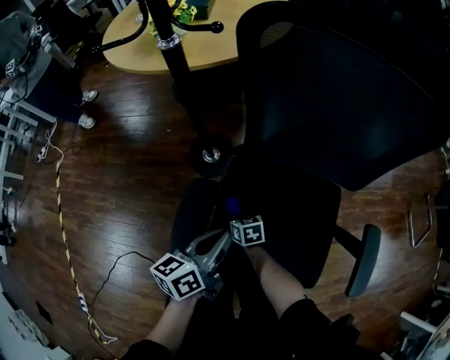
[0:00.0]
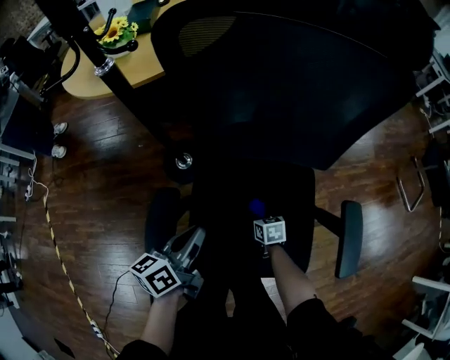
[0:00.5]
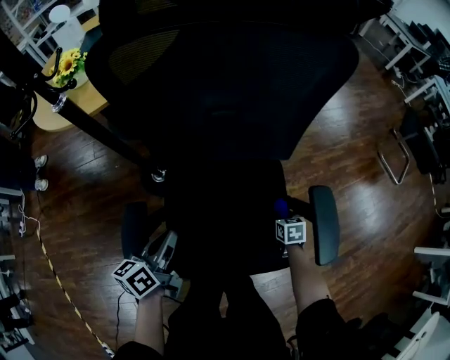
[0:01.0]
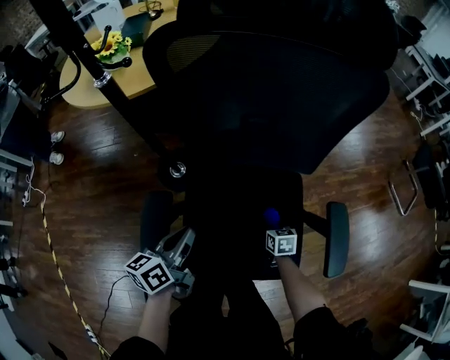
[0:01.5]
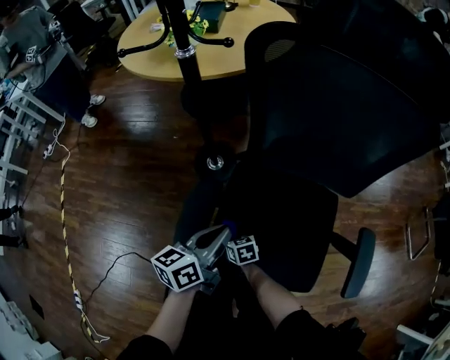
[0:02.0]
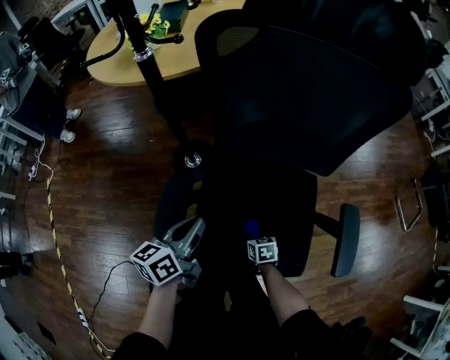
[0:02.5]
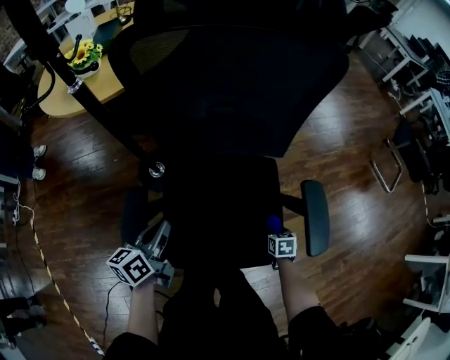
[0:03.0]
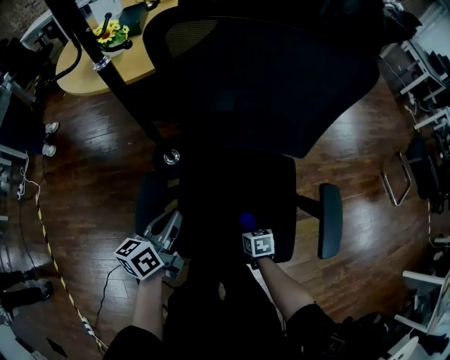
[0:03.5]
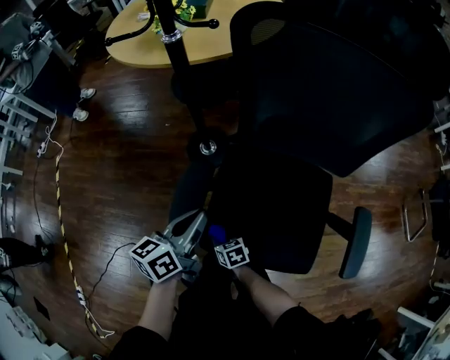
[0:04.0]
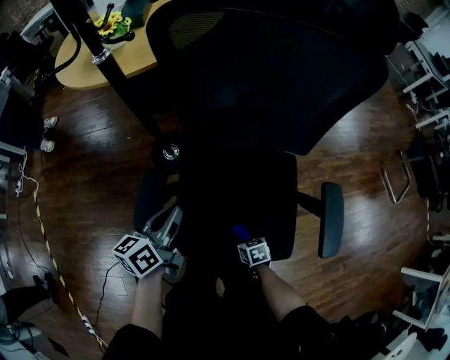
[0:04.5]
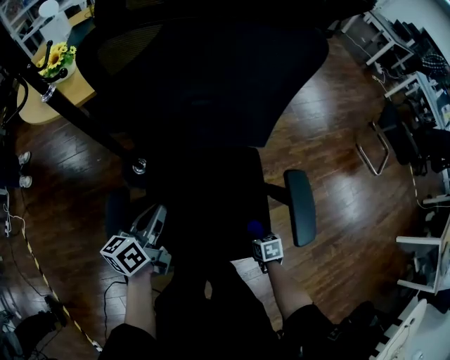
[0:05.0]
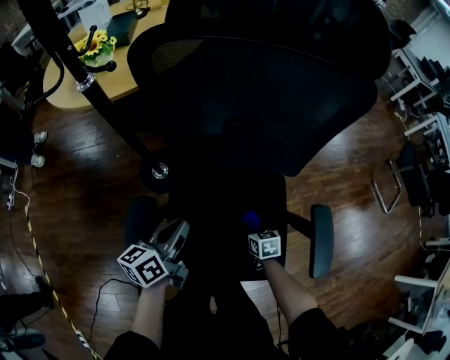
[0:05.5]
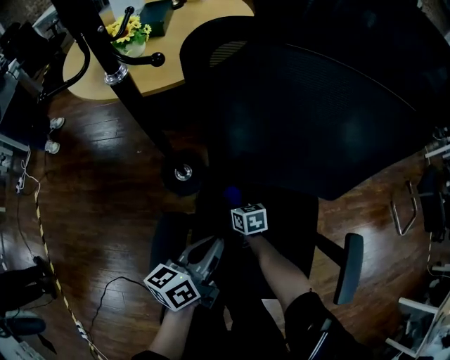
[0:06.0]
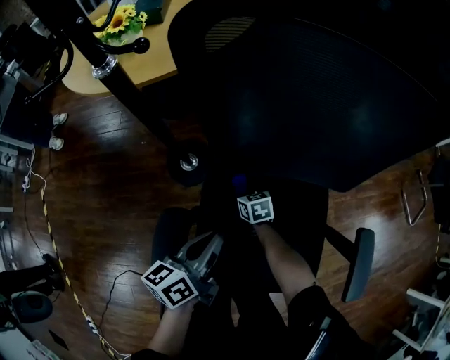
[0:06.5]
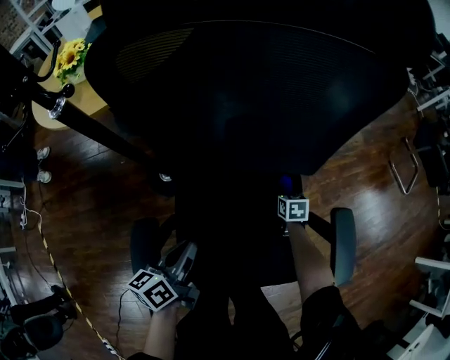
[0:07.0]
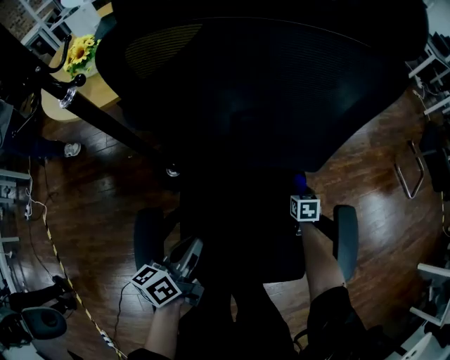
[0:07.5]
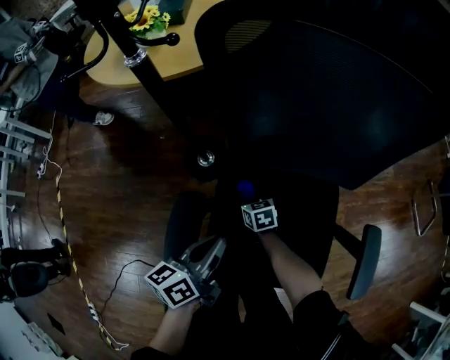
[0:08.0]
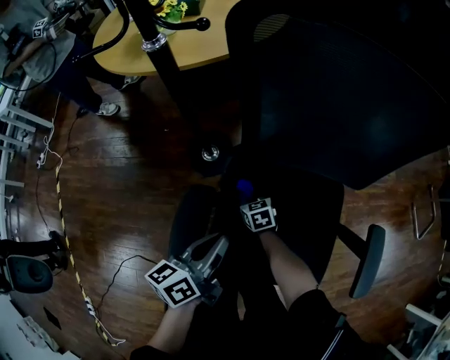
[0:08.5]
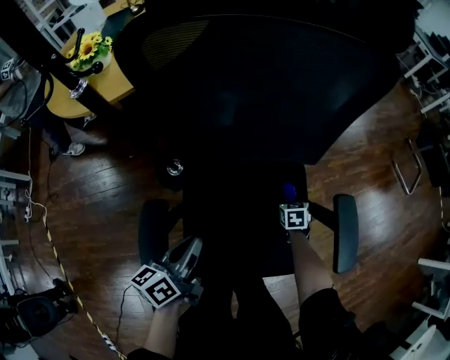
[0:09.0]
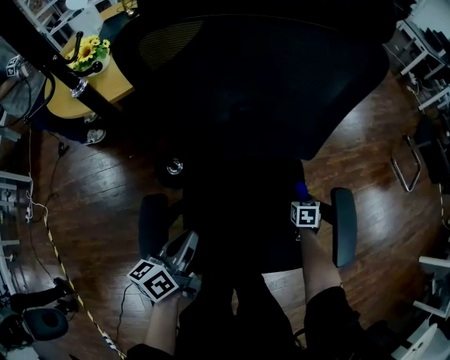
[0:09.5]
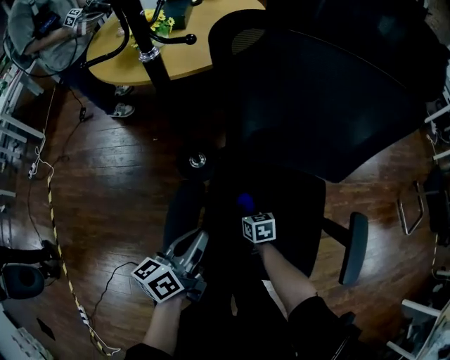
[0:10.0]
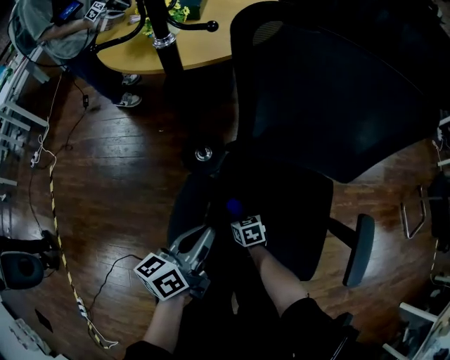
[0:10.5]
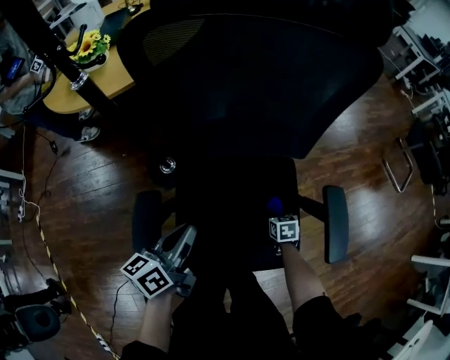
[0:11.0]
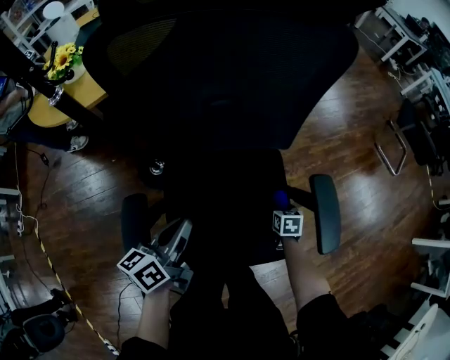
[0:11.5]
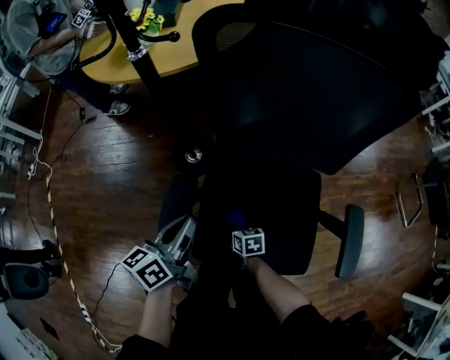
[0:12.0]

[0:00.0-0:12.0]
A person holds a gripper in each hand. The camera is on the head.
0:04.0 to 0:06.0: The left gripper shifts by roughly 10 cm. The right gripper shifts by about 30 cm.
0:08.0 to 0:10.0: The left gripper changes place by roughly 5 cm.

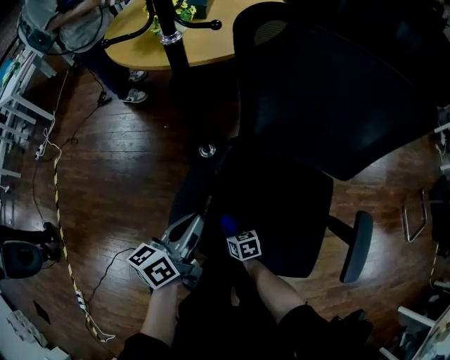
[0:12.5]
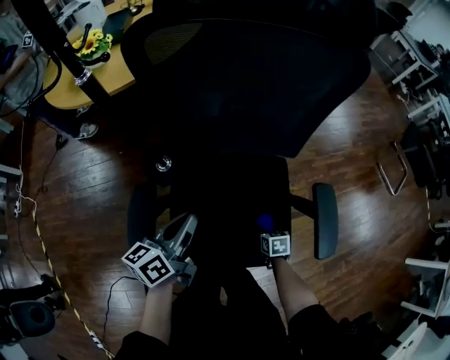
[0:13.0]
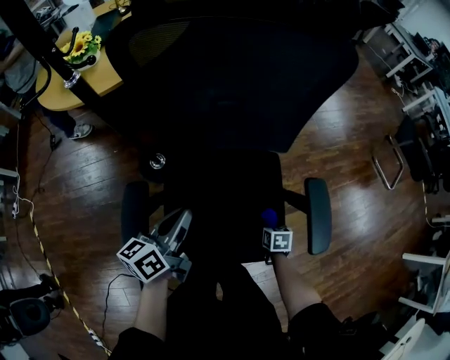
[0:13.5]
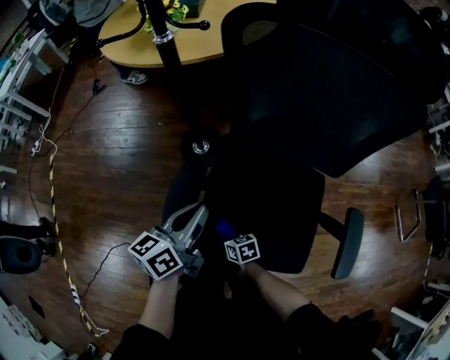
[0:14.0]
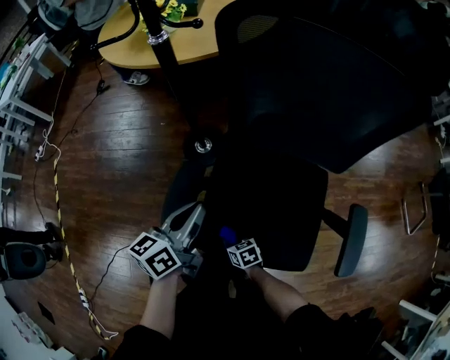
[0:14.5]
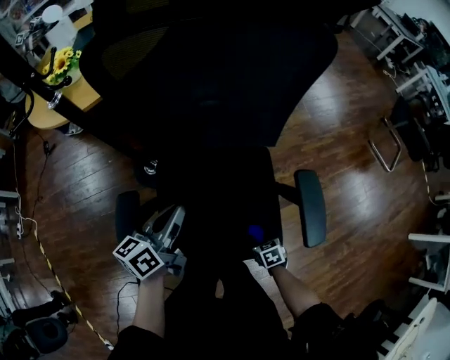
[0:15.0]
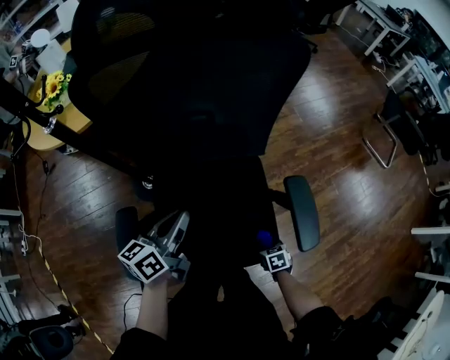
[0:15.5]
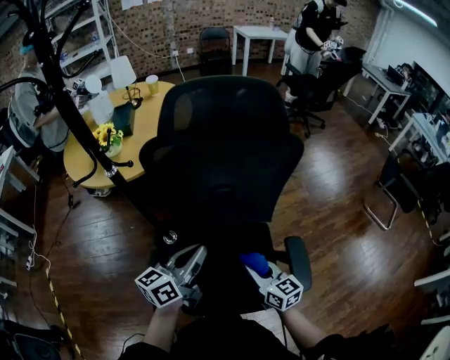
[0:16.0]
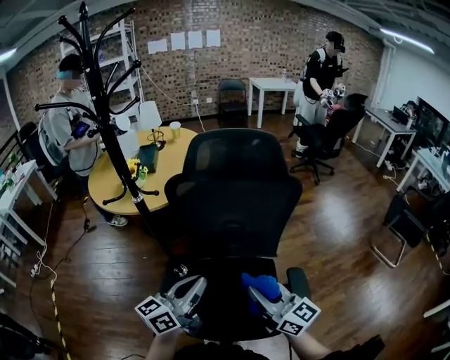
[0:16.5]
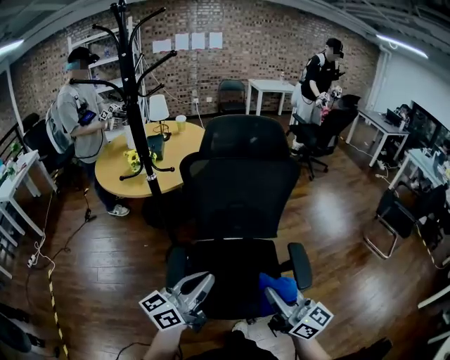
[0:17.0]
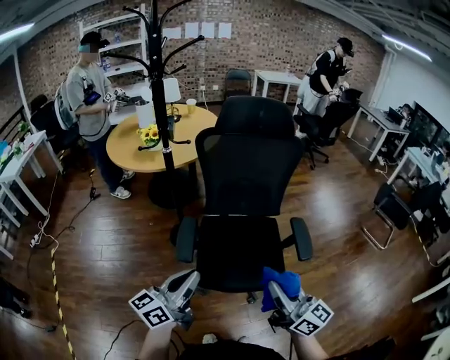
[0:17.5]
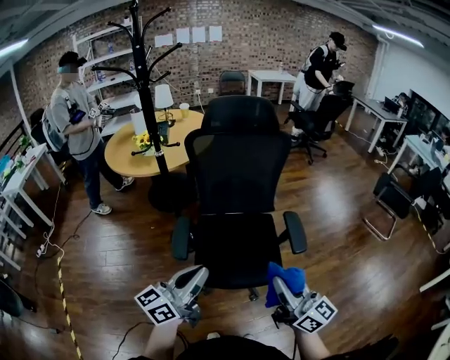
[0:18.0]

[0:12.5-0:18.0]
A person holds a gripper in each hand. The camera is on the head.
0:14.5 to 0:16.0: The right gripper shifts approximately 35 cm upward, and points its fingers approximately 40 degrees further upward, while the left gripper shifts approximately 15 cm upward, and swivels about 30 degrees.
0:16.0 to 0:18.0: The right gripper is displaced backward and upward by some 40 cm, and angles its fingers upward, by some 30 degrees. The left gripper goes about 35 cm backward.

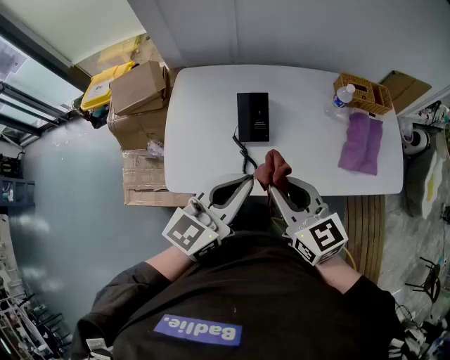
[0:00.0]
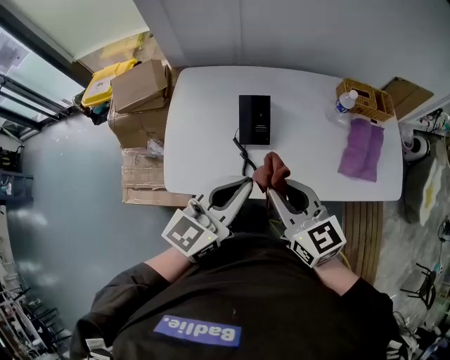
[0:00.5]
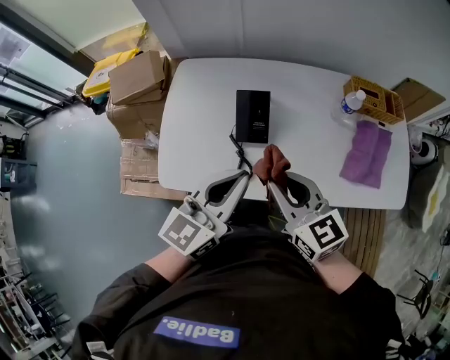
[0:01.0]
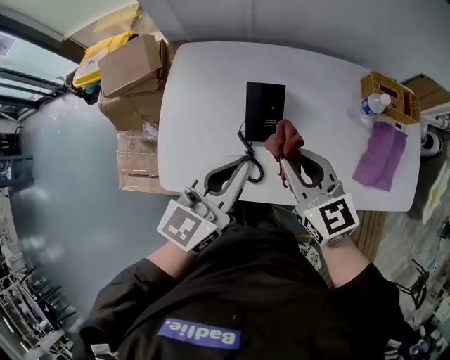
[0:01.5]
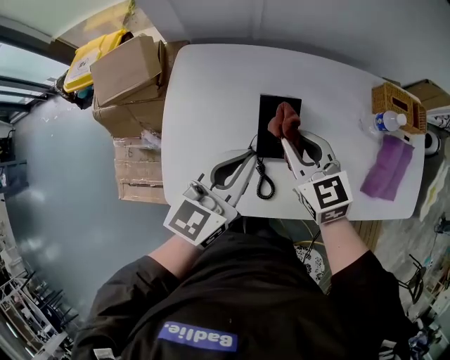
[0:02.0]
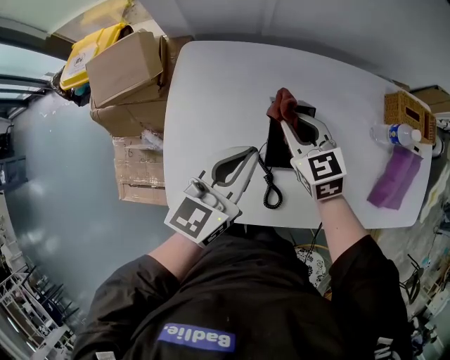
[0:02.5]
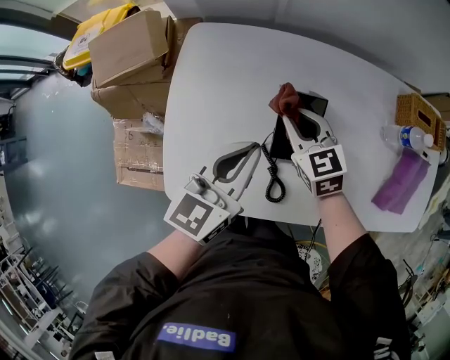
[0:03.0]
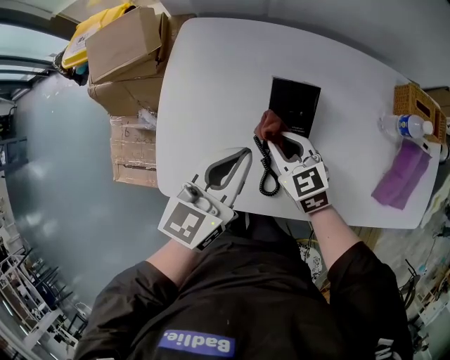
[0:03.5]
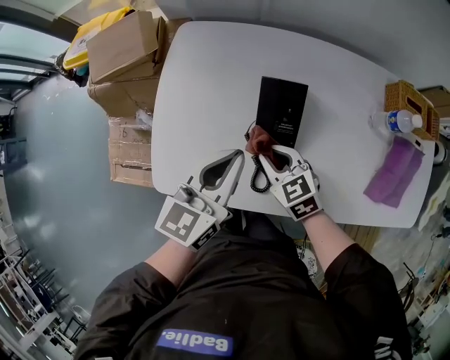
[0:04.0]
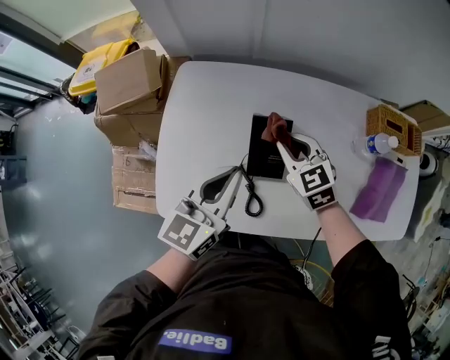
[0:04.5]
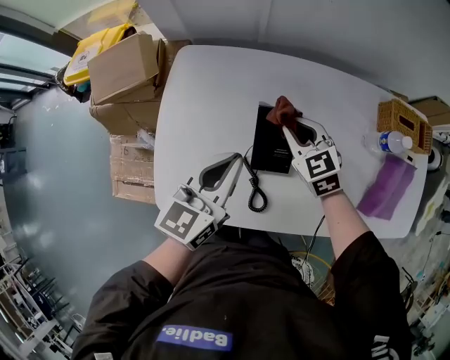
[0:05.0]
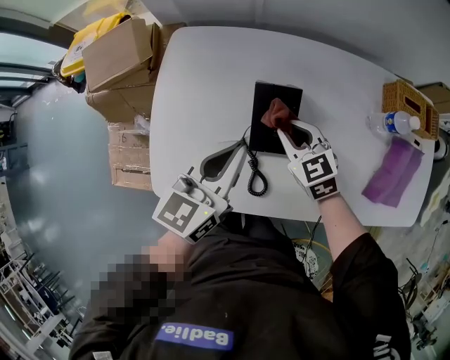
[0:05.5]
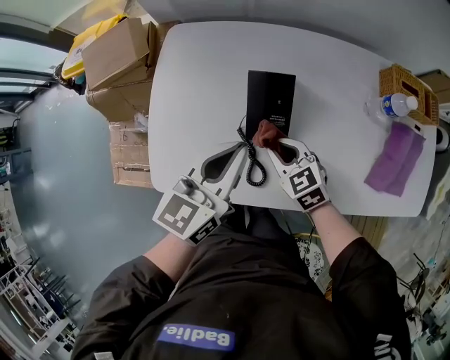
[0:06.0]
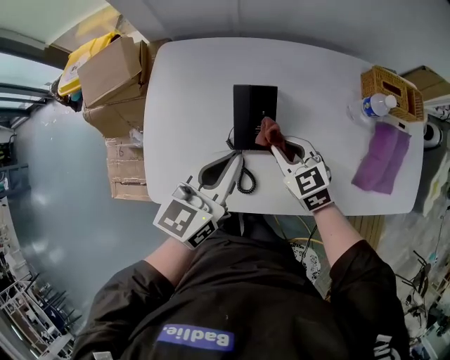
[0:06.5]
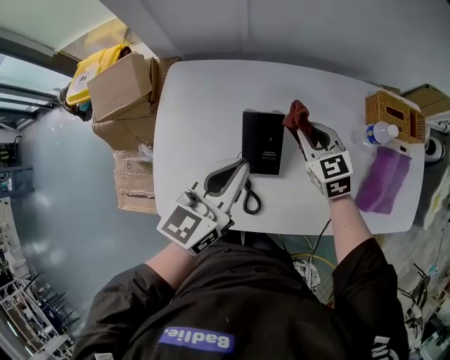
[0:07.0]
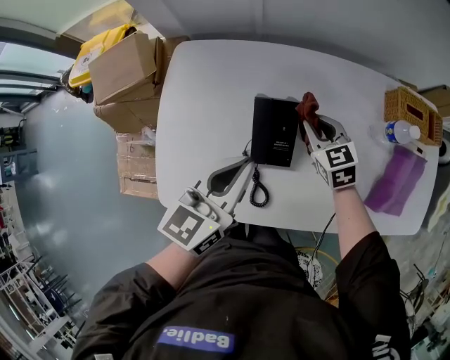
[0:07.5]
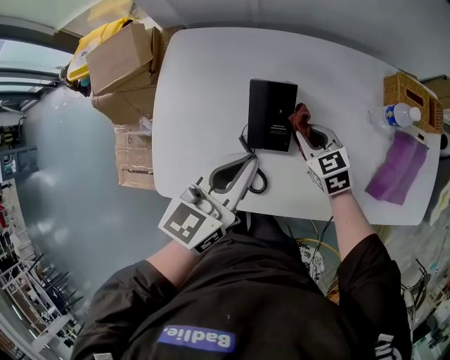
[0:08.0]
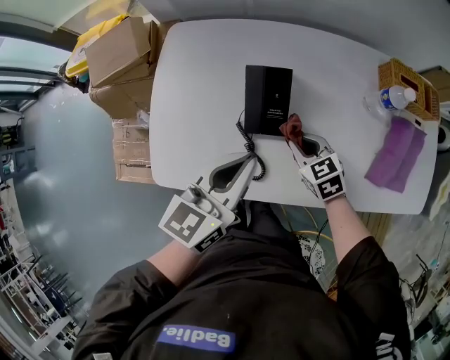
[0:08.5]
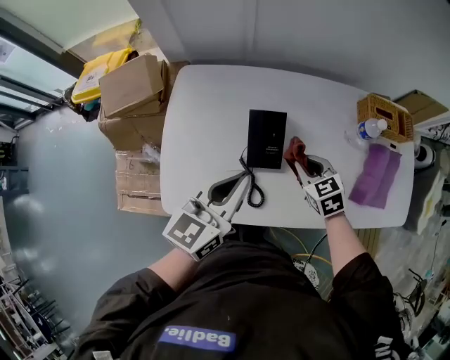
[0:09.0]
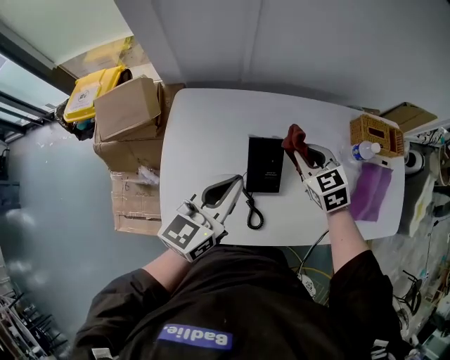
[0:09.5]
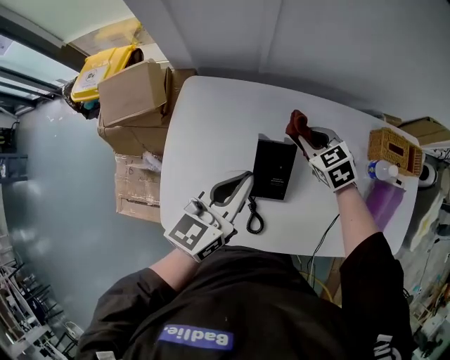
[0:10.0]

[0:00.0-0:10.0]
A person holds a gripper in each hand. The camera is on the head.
0:00.0 to 0:02.0: The two grippers go approximately 20 cm forward and downward.
0:02.0 to 0:04.0: The right gripper shifts approximately 15 cm downward and backward, and changes its angle by roughly 20 degrees. The left gripper is displaced downward by some 5 cm.
0:04.0 to 0:06.0: The right gripper goes forward and returns, roughly 15 cm each way.
0:06.0 to 0:08.0: The right gripper shifts about 10 cm to the right and forward.
0:08.0 to 0:10.0: The left gripper goes some 10 cm forward; the right gripper shifts some 15 cm forward and upward.
